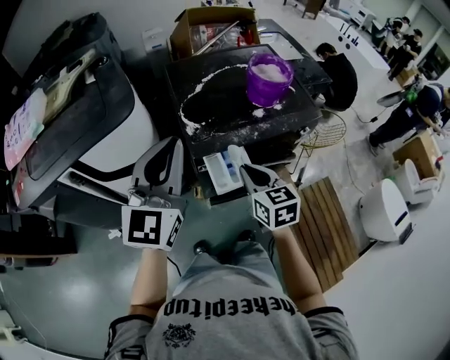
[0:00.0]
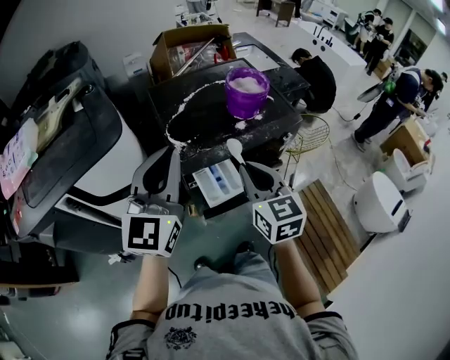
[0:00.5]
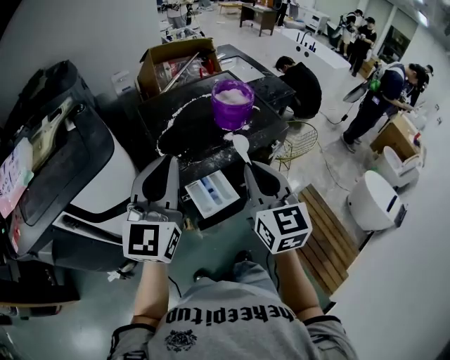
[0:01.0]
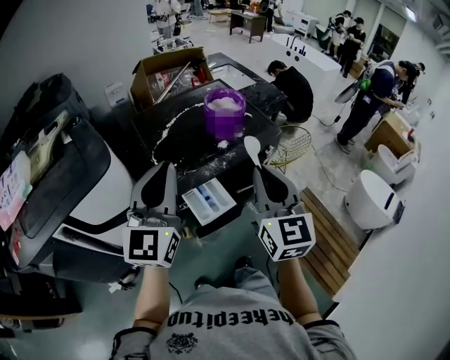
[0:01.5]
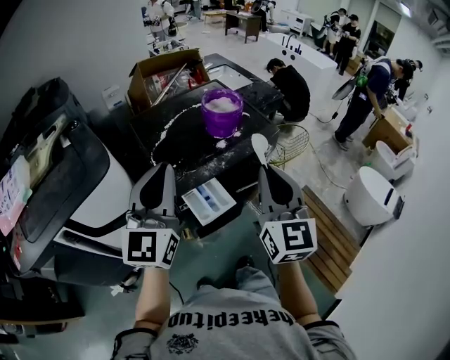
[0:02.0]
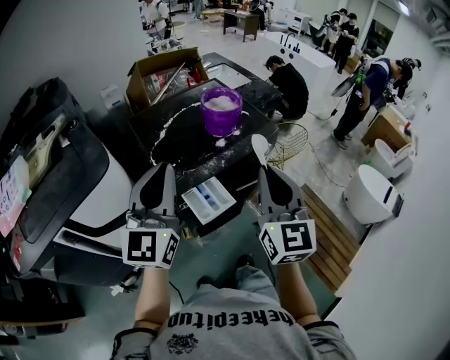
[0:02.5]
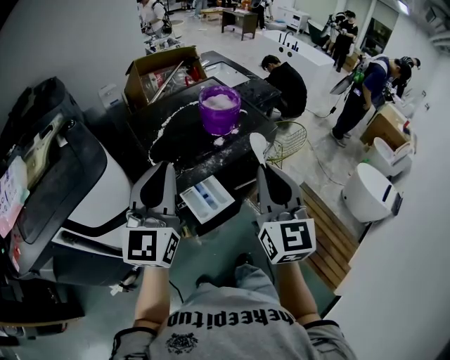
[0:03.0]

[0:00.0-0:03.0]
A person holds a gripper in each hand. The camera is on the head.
0:00.0 to 0:01.5: The right gripper moves upward and to the right, approximately 20 cm, and turns by about 40 degrees, while the left gripper moves about 5 cm.
0:01.5 to 0:03.0: The grippers move only a little.

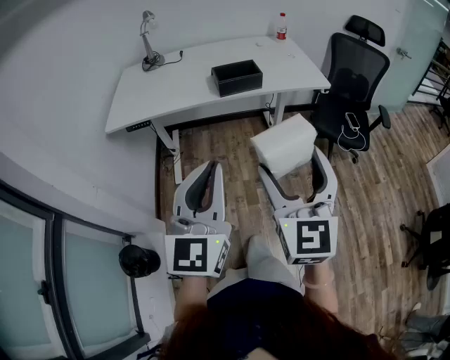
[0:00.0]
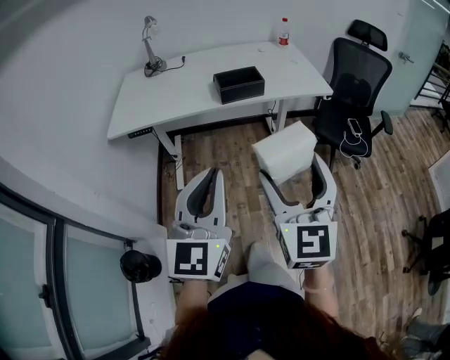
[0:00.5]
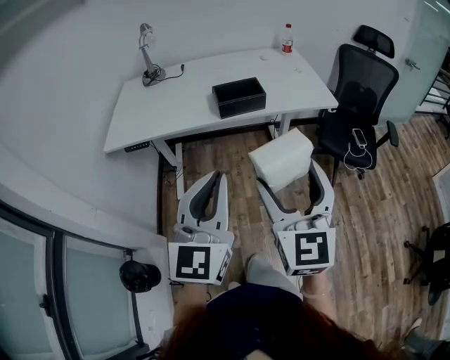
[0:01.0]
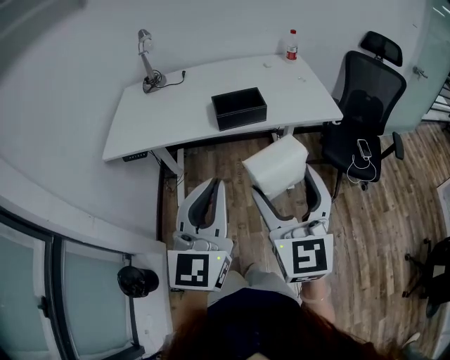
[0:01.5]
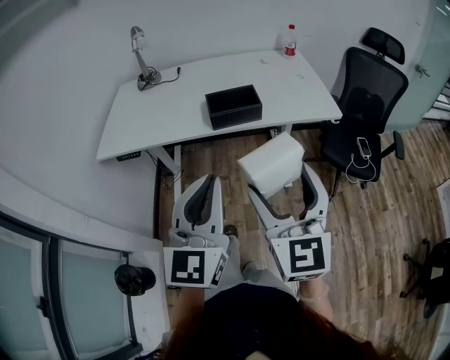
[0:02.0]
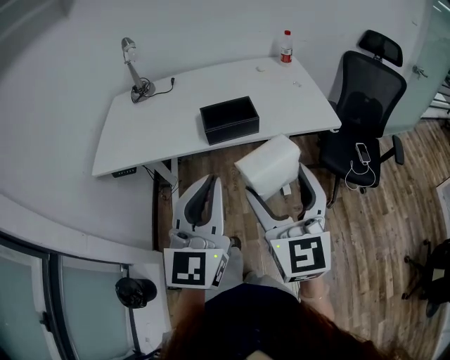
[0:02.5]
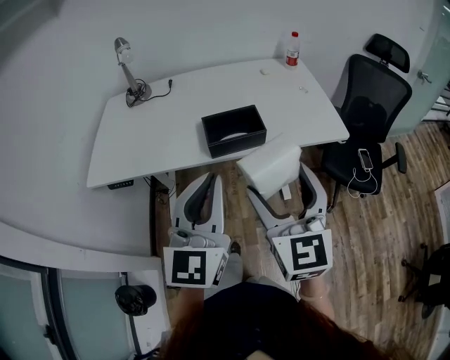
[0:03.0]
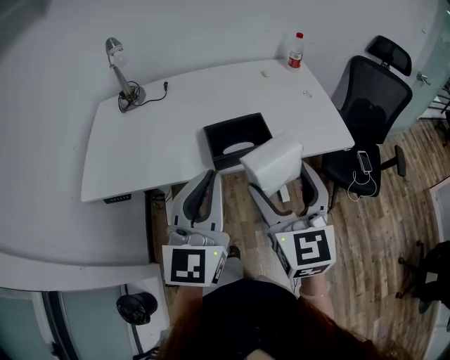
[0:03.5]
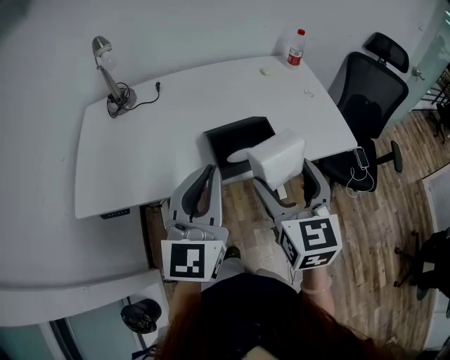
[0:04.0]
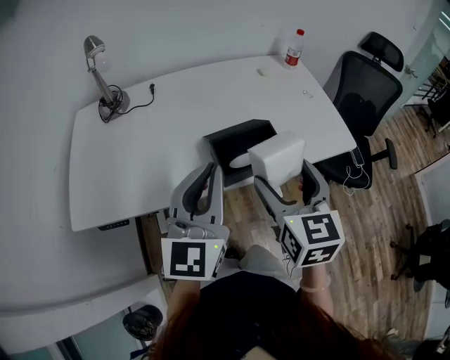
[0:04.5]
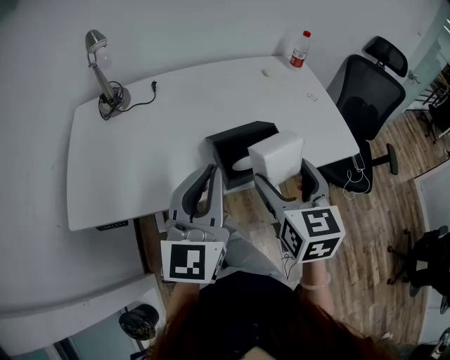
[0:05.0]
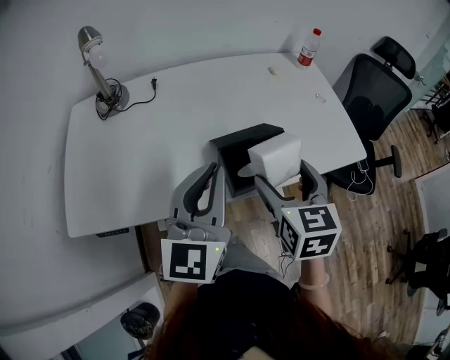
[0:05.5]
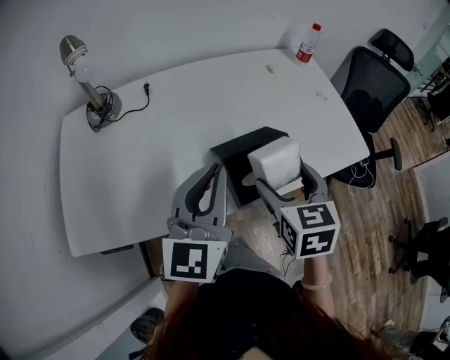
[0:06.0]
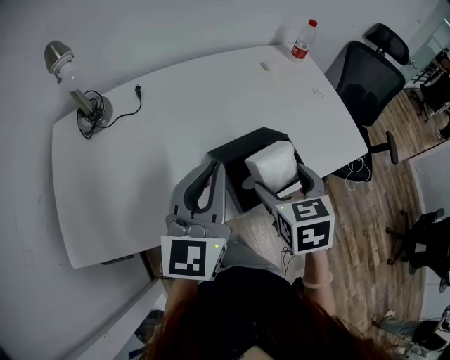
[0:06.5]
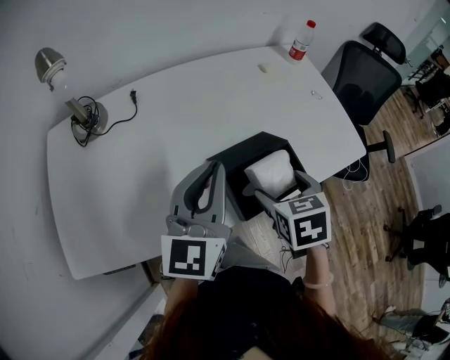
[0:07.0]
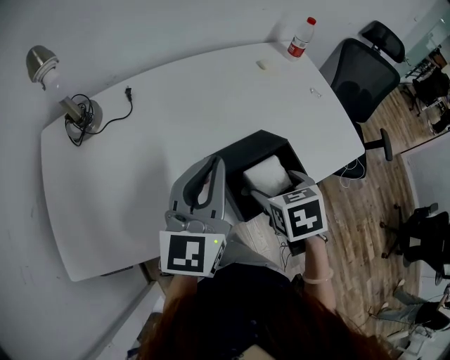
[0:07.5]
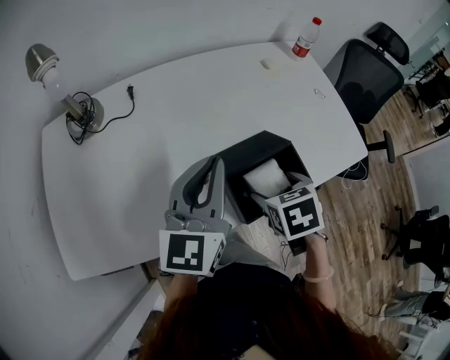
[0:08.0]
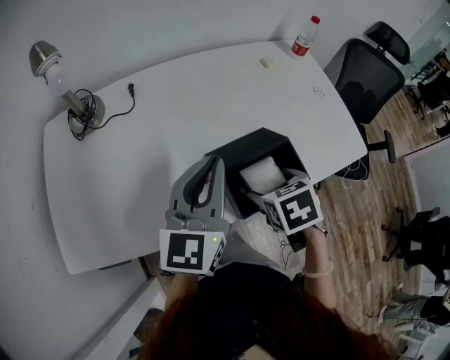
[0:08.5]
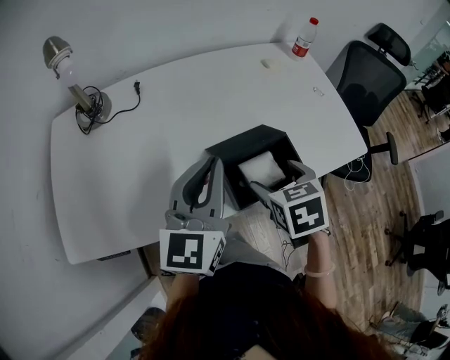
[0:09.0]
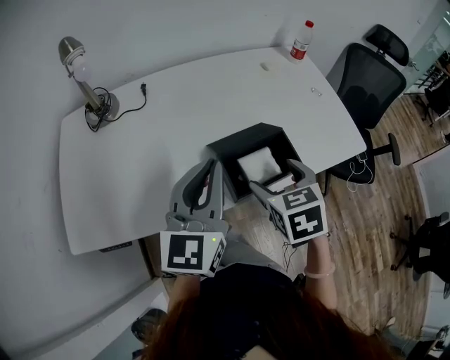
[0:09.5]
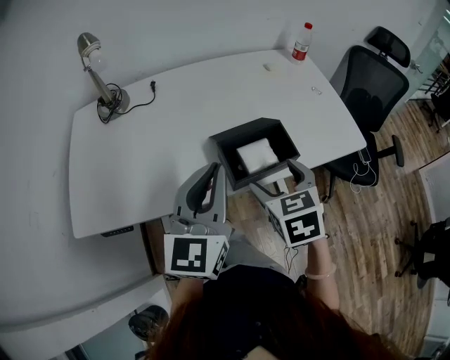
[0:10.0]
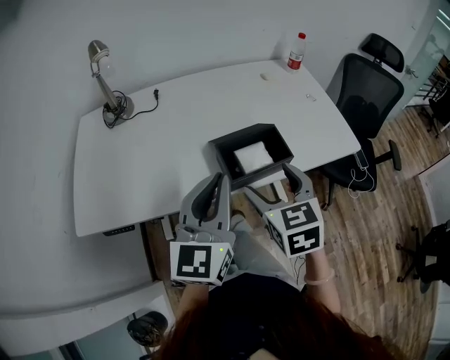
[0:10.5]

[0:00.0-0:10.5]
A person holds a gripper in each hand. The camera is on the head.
0:00.0 to 0:02.0: Both grippers move forward, about 15 cm.
0:02.0 to 0:04.0: Both grippers move forward, roughly 25 cm.
0:04.0 to 0:06.5: The right gripper travels forward, downward and to the left by roughly 15 cm, and changes its angle by about 30 degrees. The left gripper goes about 15 cm forward and to the left.
0:06.5 to 0:08.5: The right gripper travels downward by approximately 5 cm, and changes its angle by approximately 20 degrees.
0:08.5 to 0:10.5: The right gripper goes some 15 cm upward and backward, and tilts its fingers approximately 30 degrees upward. Meanwhile the left gripper goes roughly 15 cm backward.

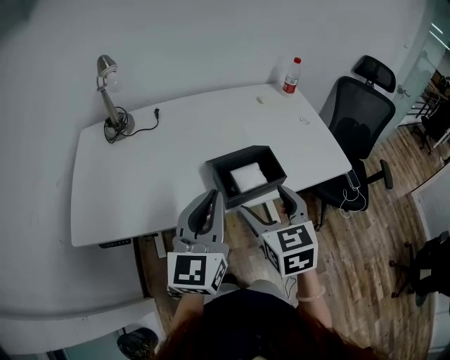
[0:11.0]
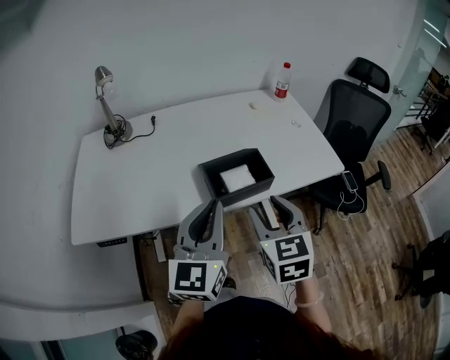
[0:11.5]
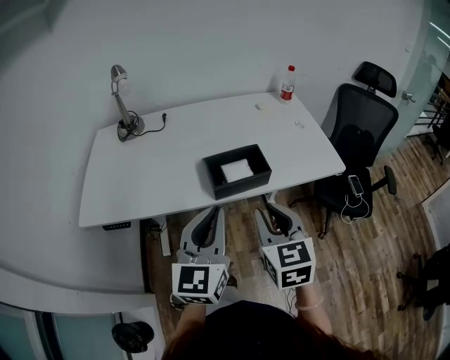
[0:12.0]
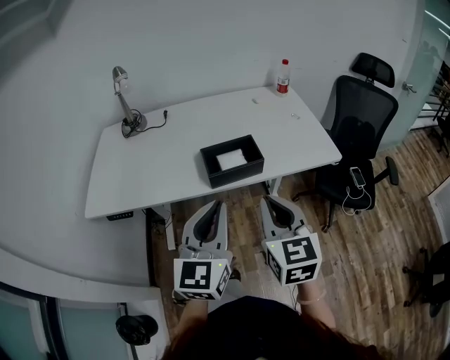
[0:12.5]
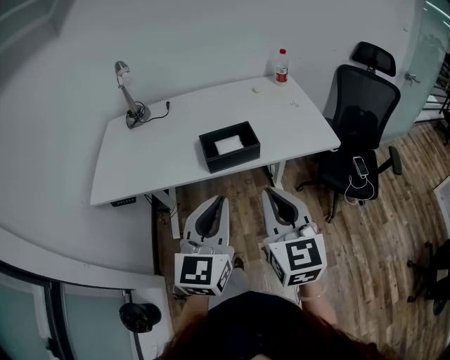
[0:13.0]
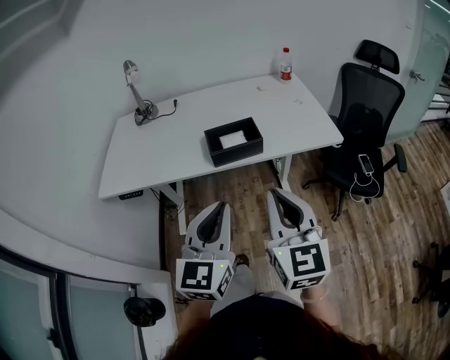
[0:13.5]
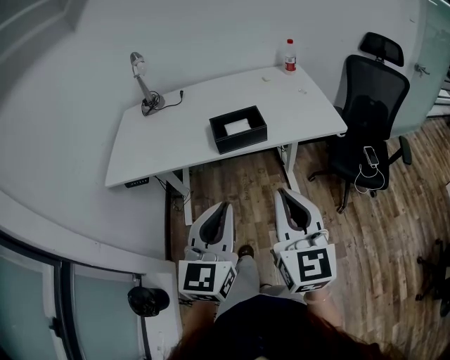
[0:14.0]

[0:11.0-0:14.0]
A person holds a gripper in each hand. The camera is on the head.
0:11.0 to 0:12.5: The grippers both shift backward and to the right by approximately 15 cm. The right gripper closes.
0:12.5 to 0:14.0: Both grippers move backward, roughly 15 cm.

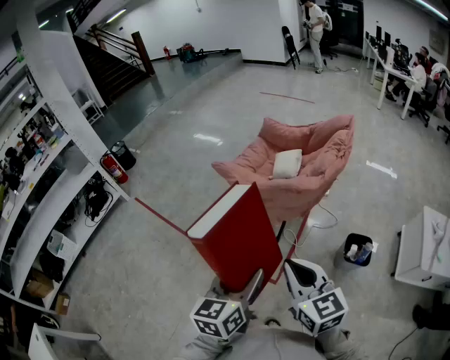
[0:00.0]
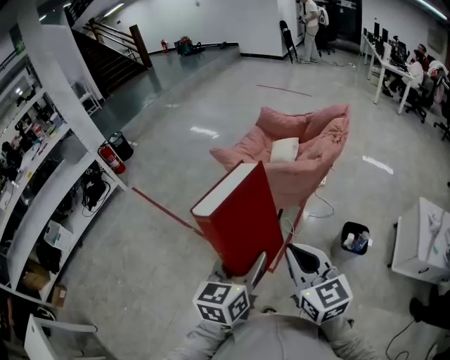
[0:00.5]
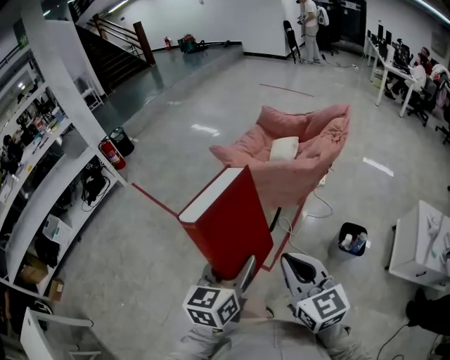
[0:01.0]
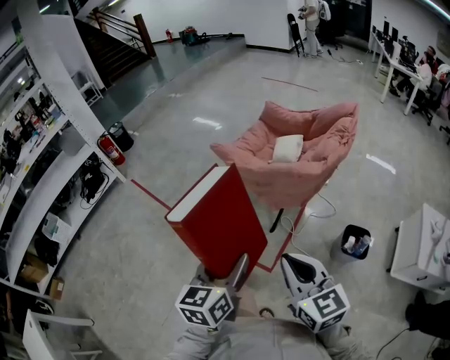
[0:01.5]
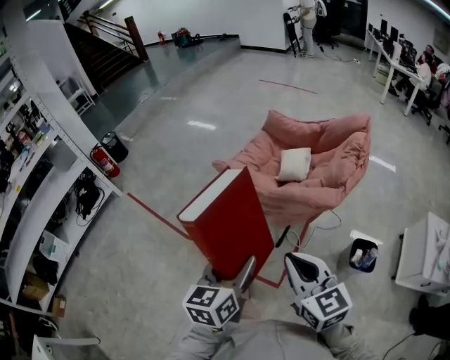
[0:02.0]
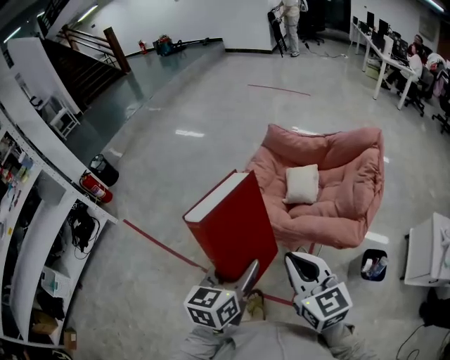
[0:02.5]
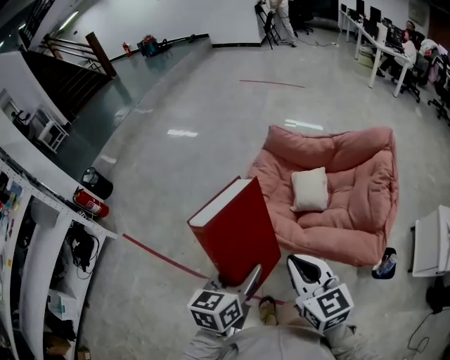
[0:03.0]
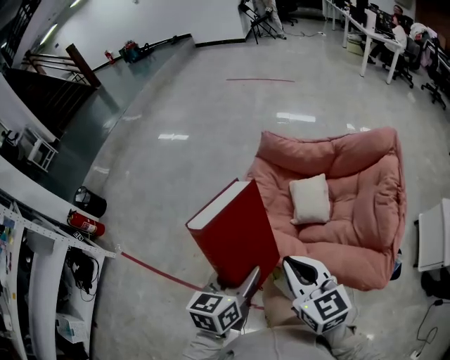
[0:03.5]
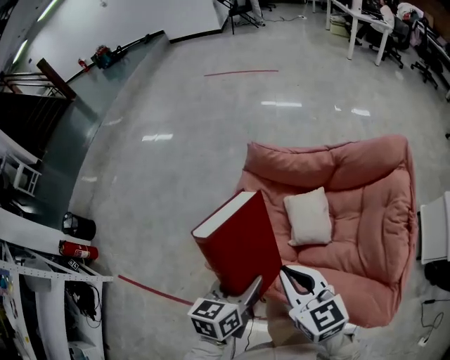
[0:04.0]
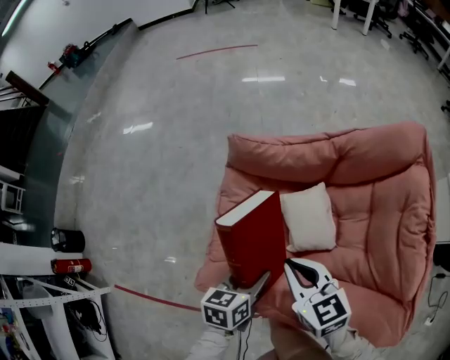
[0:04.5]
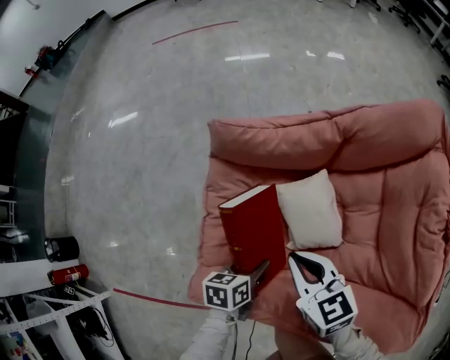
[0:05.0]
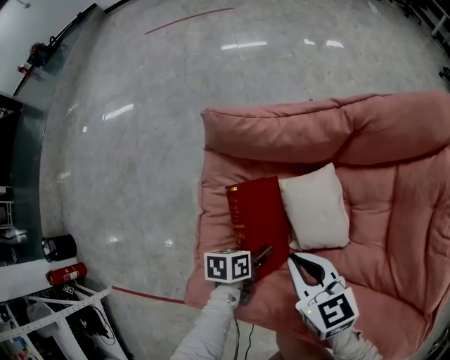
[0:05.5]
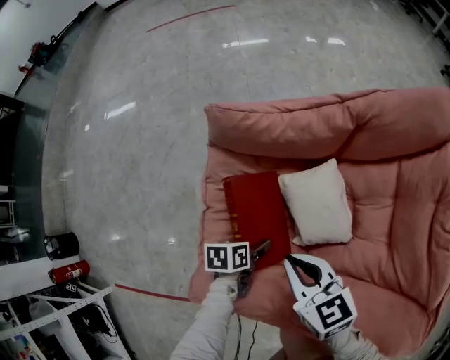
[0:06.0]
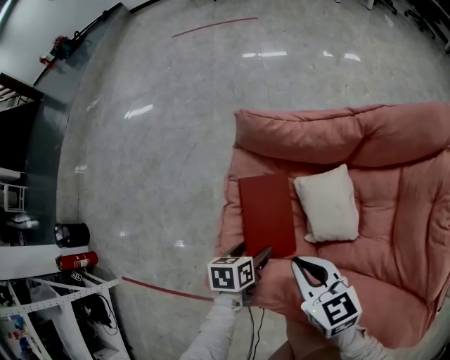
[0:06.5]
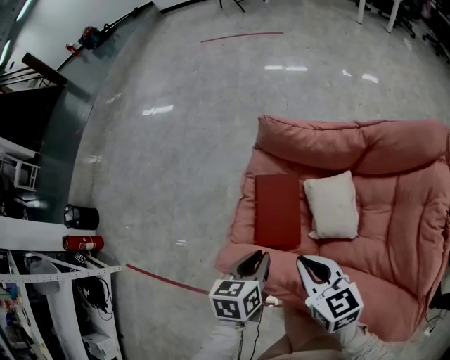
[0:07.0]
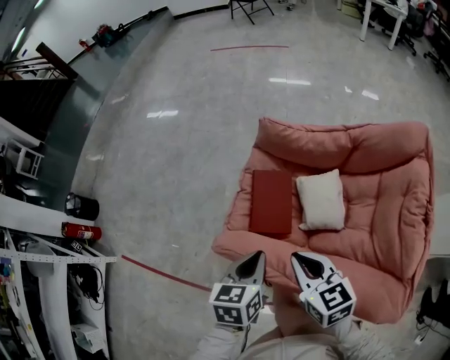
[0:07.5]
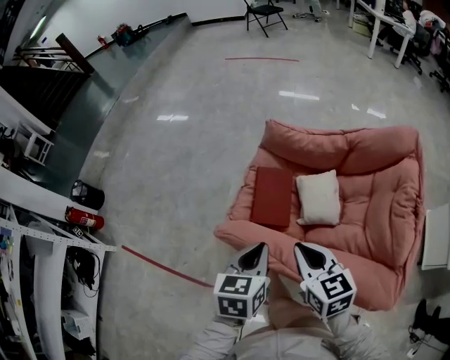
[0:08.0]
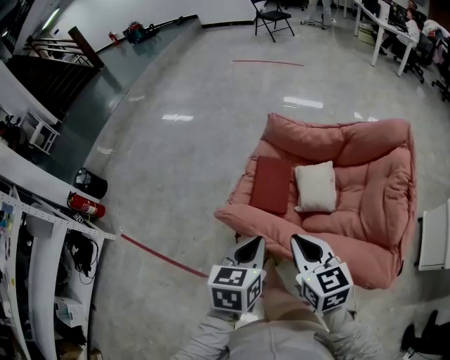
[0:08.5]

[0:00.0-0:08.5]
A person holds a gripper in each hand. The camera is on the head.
0:00.0 to 0:02.0: The right gripper is displaced forward by about 10 cm, while the left gripper travels forward and to the left by approximately 15 cm.
0:02.0 to 0:04.0: Both grippers are carried forward, about 50 cm. The left gripper swivels approximately 30 degrees.
0:04.0 to 0:06.5: The left gripper moves downward and forward, approximately 25 cm, swivels about 30 degrees, and opens; the right gripper moves downward and forward, approximately 20 cm.
0:06.5 to 0:08.5: The left gripper travels upward and backward by some 35 cm, swivels some 30 degrees, and closes up, while the right gripper goes roughly 25 cm backward and upward.

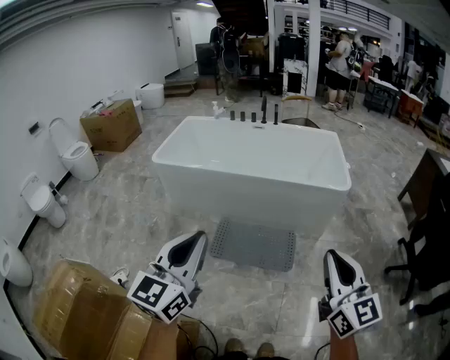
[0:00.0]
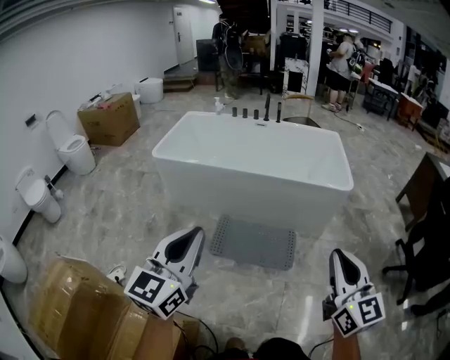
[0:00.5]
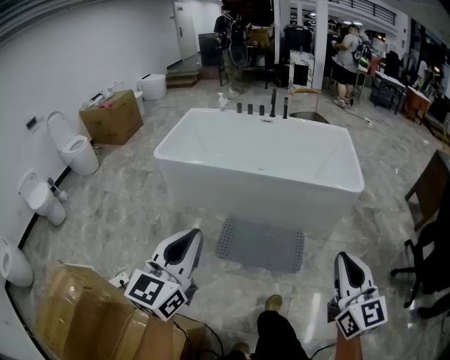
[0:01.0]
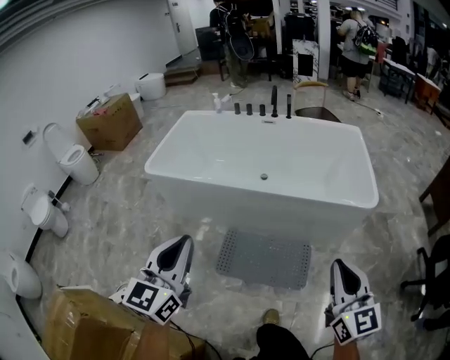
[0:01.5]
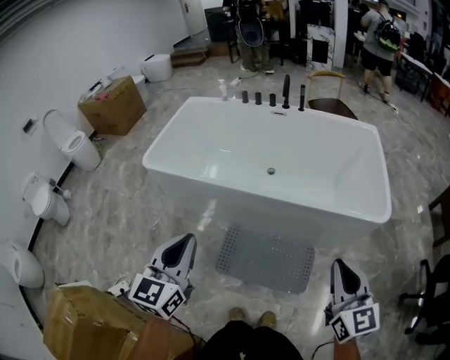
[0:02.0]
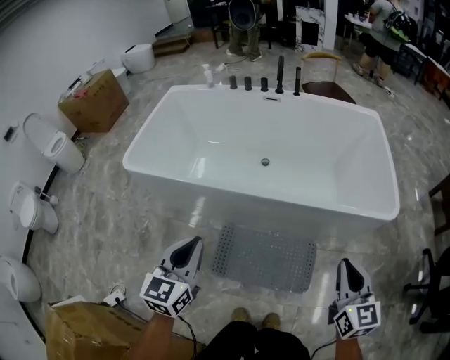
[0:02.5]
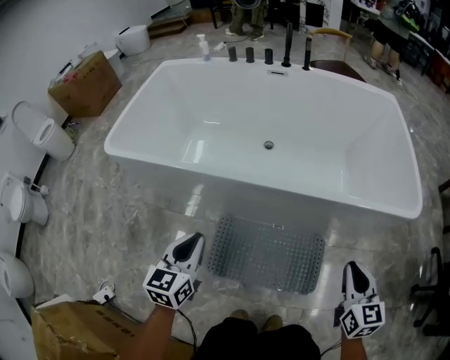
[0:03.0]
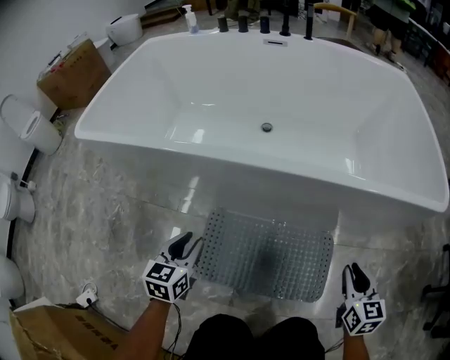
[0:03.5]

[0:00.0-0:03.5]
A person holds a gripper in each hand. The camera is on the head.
0:00.0 to 0:02.0: The two grippers go some 35 cm forward.
0:02.0 to 0:03.5: Both grippers travel together downward, some 50 cm. The left gripper rotates approximately 30 degrees, while the right gripper rotates approximately 30 degrees.
